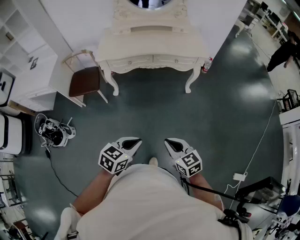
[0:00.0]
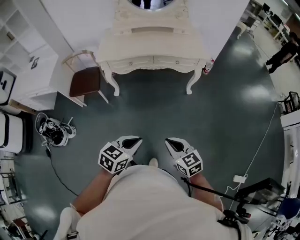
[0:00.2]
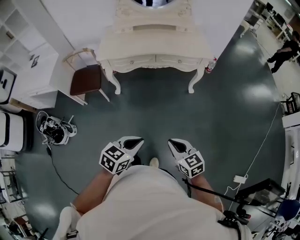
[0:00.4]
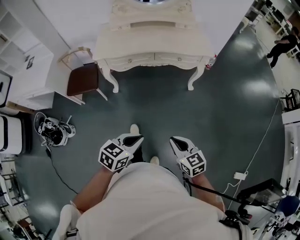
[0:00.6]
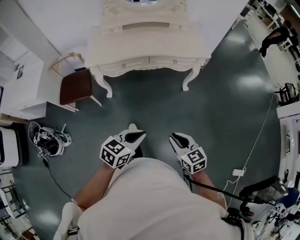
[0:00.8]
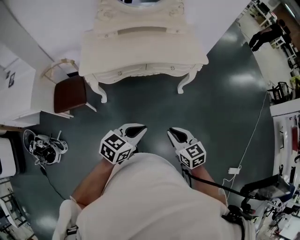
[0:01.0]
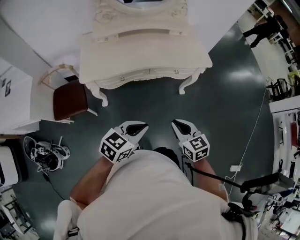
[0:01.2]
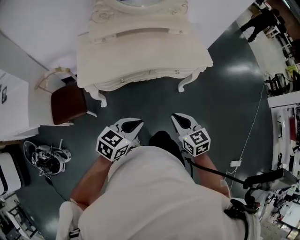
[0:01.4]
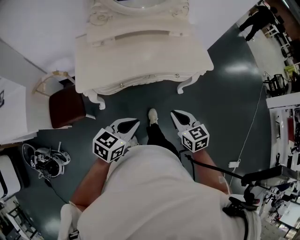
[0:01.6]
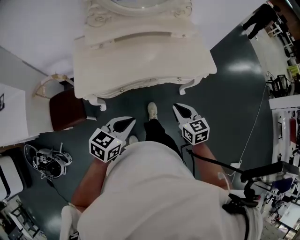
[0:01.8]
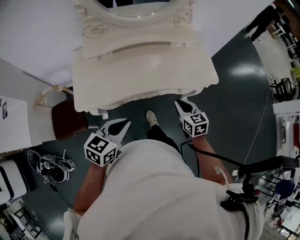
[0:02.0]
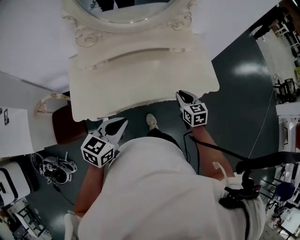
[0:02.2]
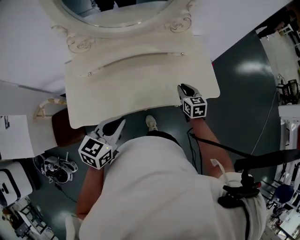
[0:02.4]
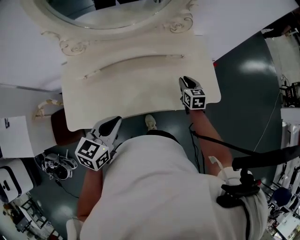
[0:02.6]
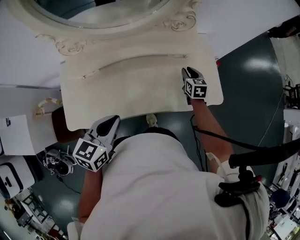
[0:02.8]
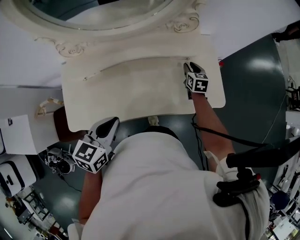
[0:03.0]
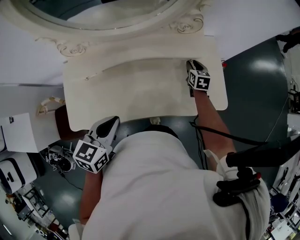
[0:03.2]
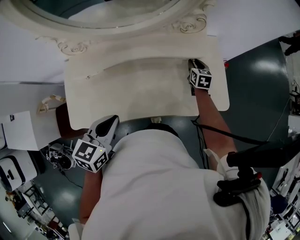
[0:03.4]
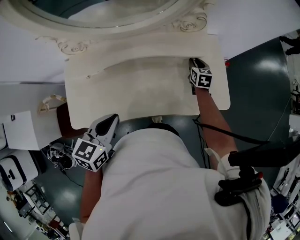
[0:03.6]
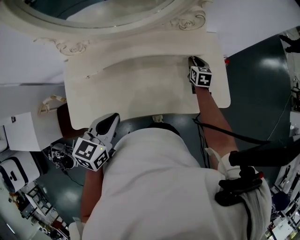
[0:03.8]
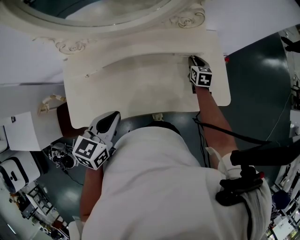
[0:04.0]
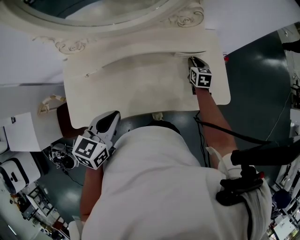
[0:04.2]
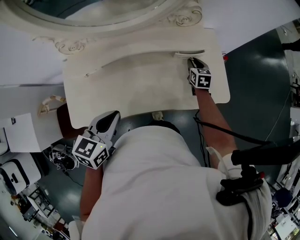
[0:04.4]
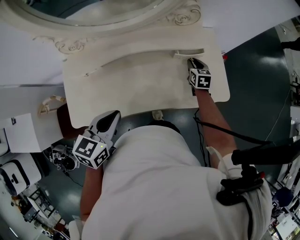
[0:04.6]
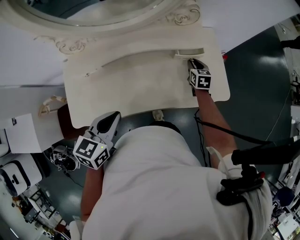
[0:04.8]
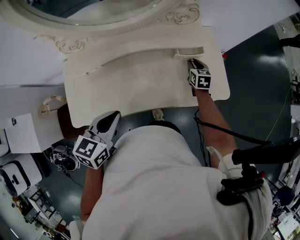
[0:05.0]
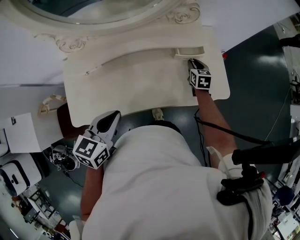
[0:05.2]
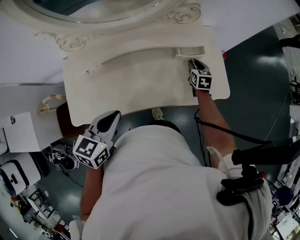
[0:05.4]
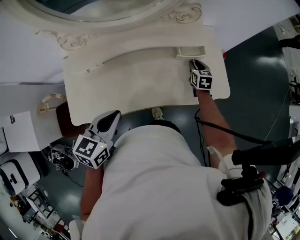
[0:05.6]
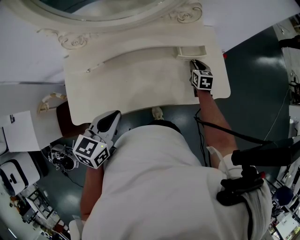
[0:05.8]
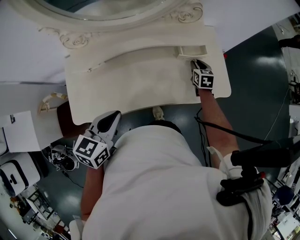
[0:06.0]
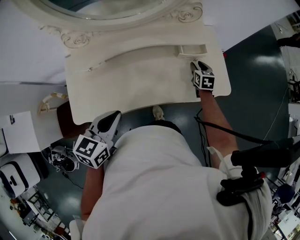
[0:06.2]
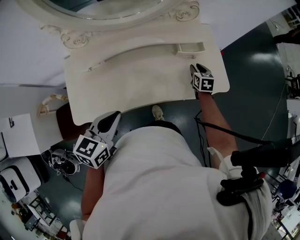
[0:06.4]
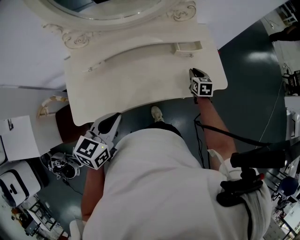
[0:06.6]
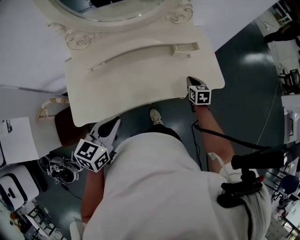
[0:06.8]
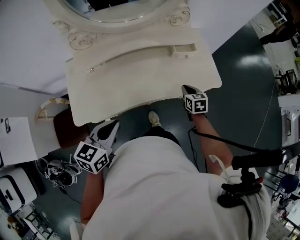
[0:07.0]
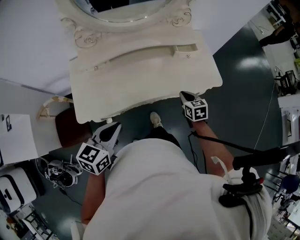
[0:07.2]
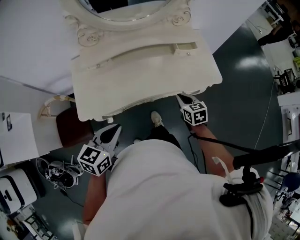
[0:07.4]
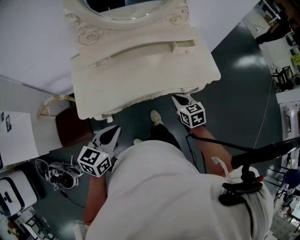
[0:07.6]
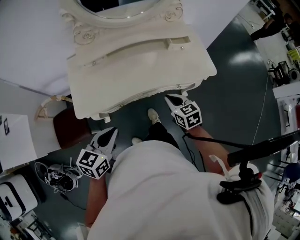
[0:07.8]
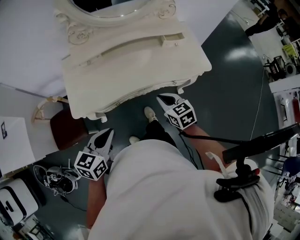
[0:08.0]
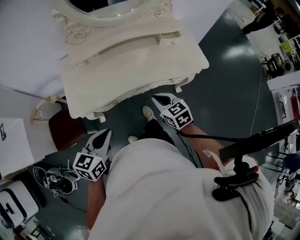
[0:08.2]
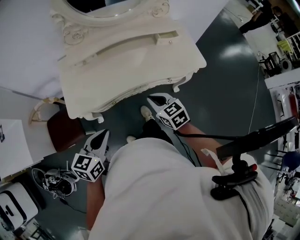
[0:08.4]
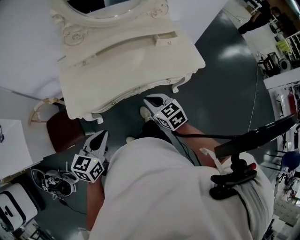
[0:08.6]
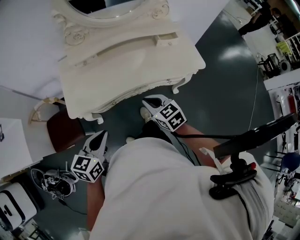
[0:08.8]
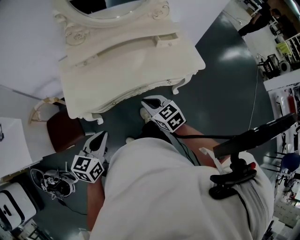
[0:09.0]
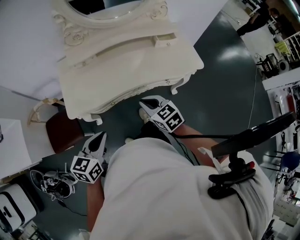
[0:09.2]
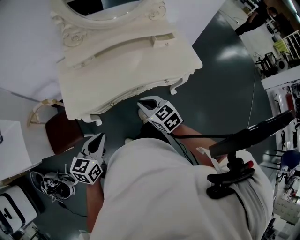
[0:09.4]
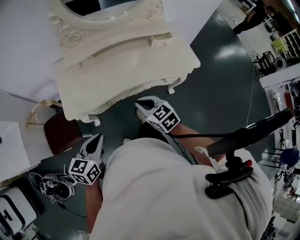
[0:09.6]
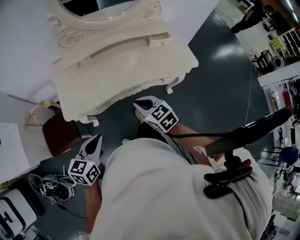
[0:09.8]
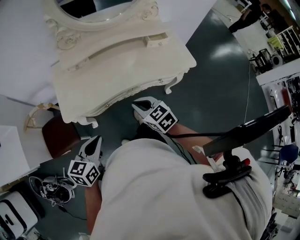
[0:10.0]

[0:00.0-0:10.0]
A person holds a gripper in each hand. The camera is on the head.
0:00.0 to 0:01.4: The left gripper shifts some 35 cm forward and to the left. Meanwhile the right gripper shifts about 35 cm forward.
0:01.4 to 0:02.8: The left gripper moves forward, roughly 40 cm, and swivels approximately 20 degrees. Meanwhile the right gripper moves forward, some 60 cm, and opens up.
0:02.8 to 0:04.2: The right gripper travels forward by about 5 cm.
0:04.2 to 0:05.8: The right gripper moves roughly 5 cm.
0:05.8 to 0:07.2: The left gripper is displaced backward by approximately 15 cm. The right gripper moves backward, some 25 cm, and closes.
0:07.2 to 0:08.6: The right gripper goes some 25 cm to the left, backward and upward, and changes its angle by approximately 20 degrees, while the left gripper heads backward, covering approximately 10 cm.
0:08.6 to 0:10.0: The grippers move only a little.

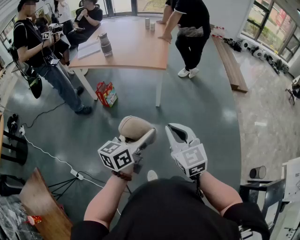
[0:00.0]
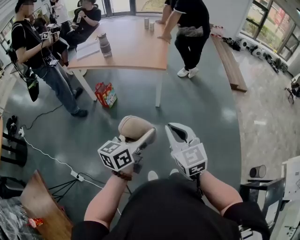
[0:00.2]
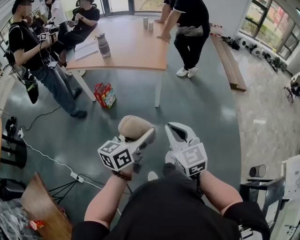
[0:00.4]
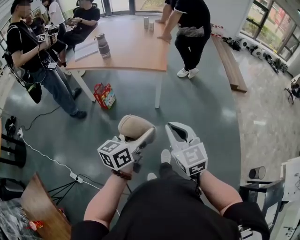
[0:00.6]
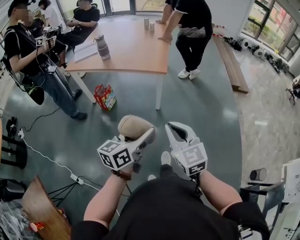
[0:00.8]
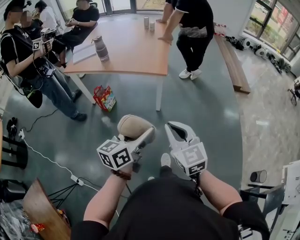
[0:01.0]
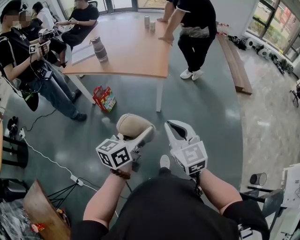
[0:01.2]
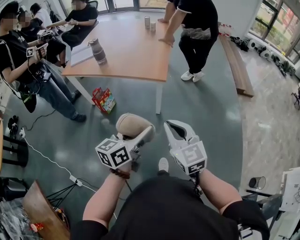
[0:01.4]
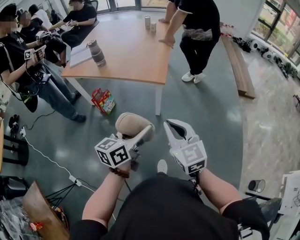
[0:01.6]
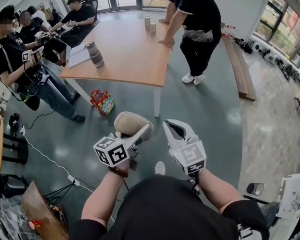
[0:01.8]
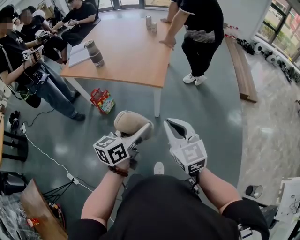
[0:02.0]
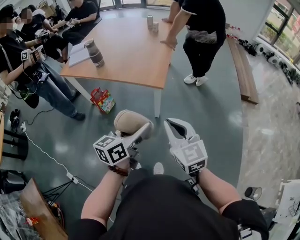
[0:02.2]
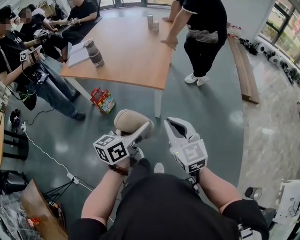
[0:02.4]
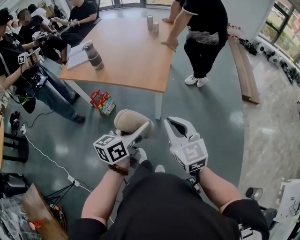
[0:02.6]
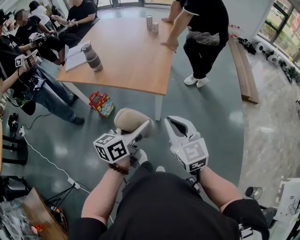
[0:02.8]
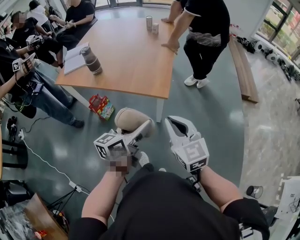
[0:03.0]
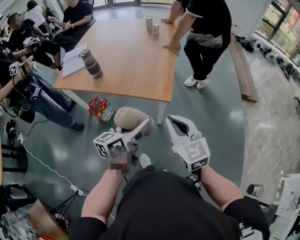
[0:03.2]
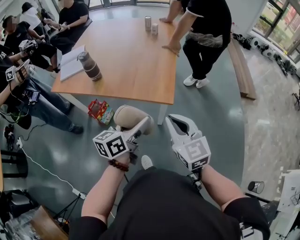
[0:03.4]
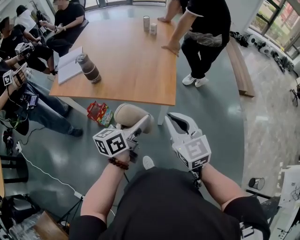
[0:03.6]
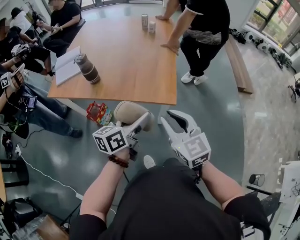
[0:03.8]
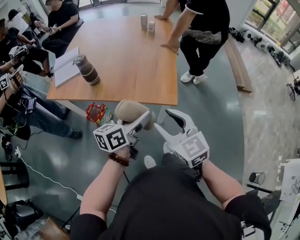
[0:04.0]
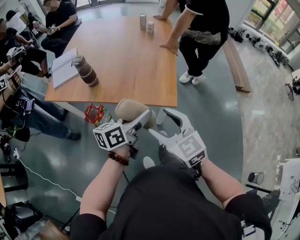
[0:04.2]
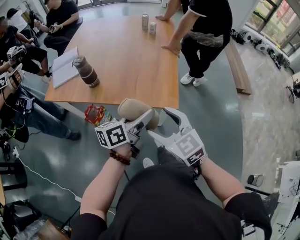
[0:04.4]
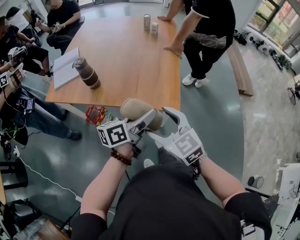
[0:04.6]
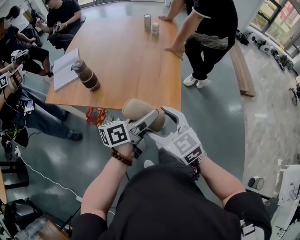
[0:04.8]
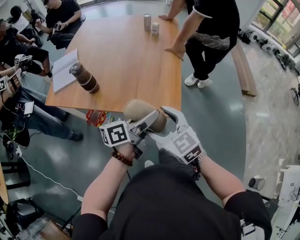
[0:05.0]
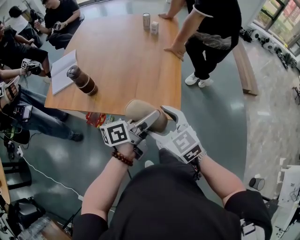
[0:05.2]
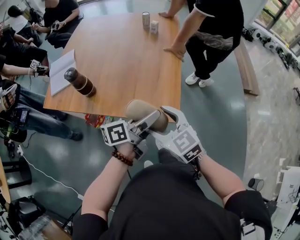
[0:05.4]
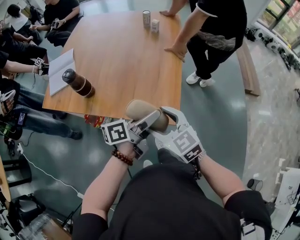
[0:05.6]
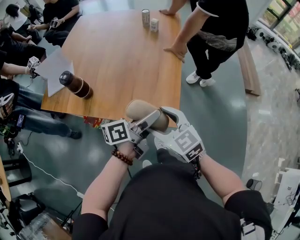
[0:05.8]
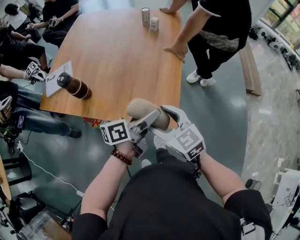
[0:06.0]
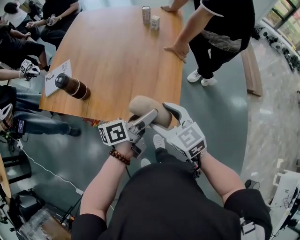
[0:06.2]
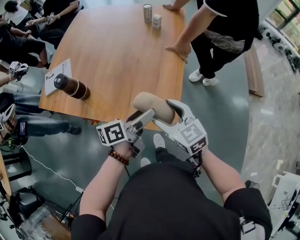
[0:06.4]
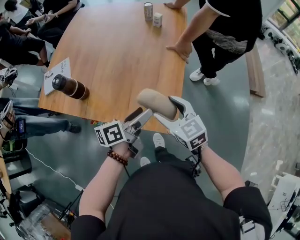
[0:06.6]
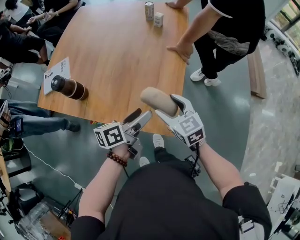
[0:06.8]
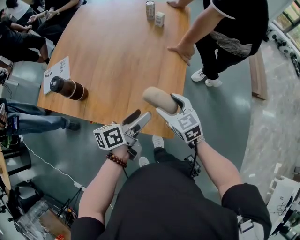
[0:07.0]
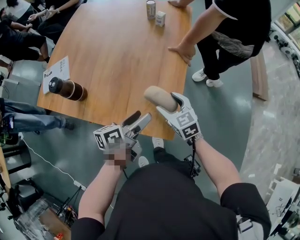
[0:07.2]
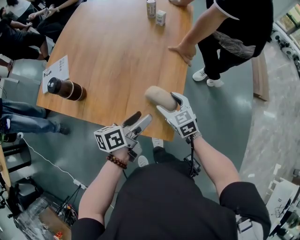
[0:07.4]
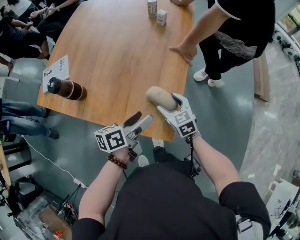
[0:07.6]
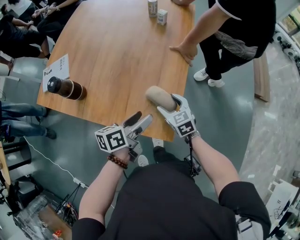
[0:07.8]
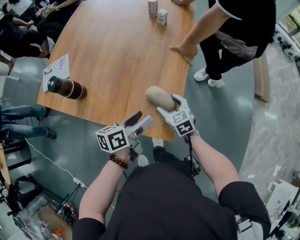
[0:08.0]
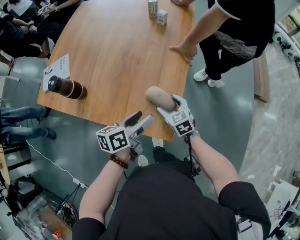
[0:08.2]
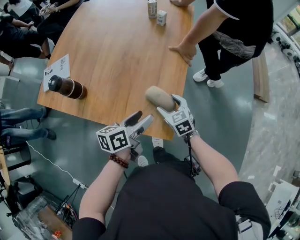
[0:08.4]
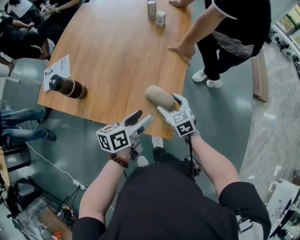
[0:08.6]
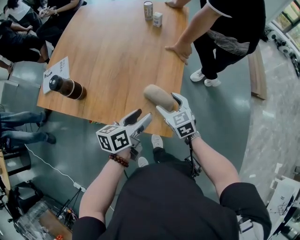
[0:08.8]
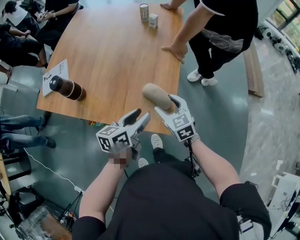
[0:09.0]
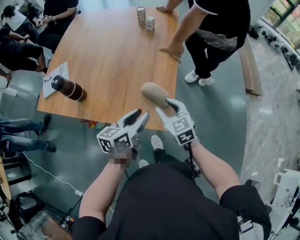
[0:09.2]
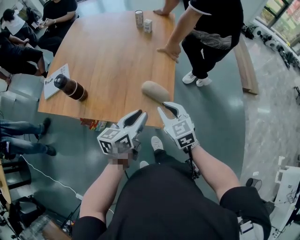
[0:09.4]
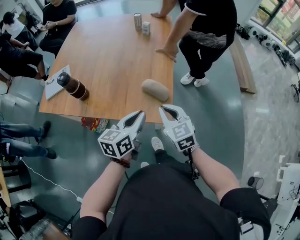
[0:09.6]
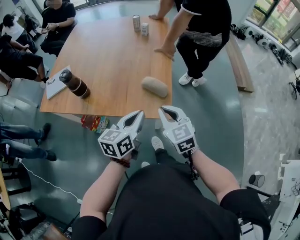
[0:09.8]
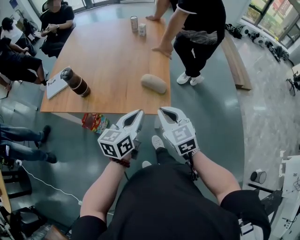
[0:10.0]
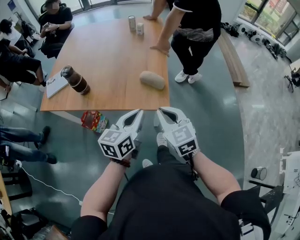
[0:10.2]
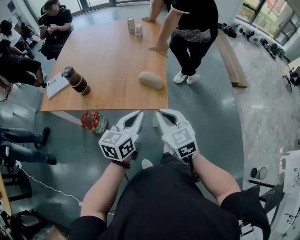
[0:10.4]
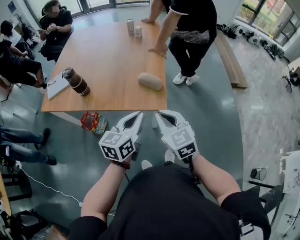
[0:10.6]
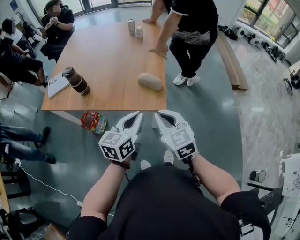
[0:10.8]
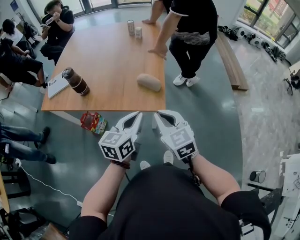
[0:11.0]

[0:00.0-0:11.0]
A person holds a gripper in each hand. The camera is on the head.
0:00.0 to 0:01.6: The grippers both shift forward by approximately 20 cm.
0:01.6 to 0:03.2: The grippers both shift forward by approximately 20 cm.
0:03.2 to 0:04.8: The left gripper goes approximately 15 cm forward, and turns by approximately 20 degrees; the right gripper heads to the left and forward, covering roughly 15 cm, and opens its fingers.
0:04.8 to 0:06.2: The left gripper is displaced forward by approximately 10 cm; the right gripper moves forward and to the right, some 15 cm.
0:06.2 to 0:07.8: The left gripper goes some 5 cm downward; the right gripper travels downward and forward by roughly 20 cm.
0:07.8 to 0:09.4: The left gripper is displaced backward by about 5 cm, swivels about 20 degrees, and closes its fingers. Meanwhile the right gripper goes some 15 cm upward and backward, and closes up.
0:09.4 to 0:11.0: The grippers both shift backward and upward by about 15 cm.

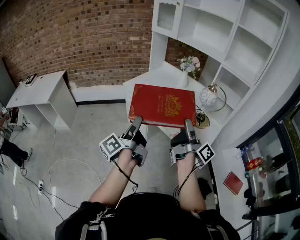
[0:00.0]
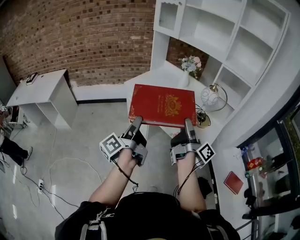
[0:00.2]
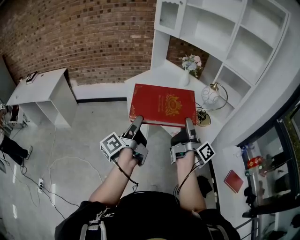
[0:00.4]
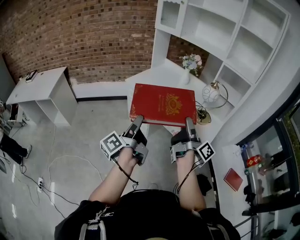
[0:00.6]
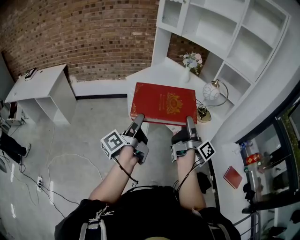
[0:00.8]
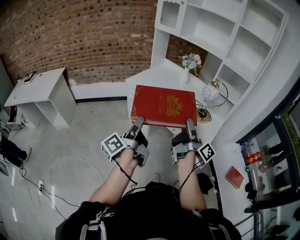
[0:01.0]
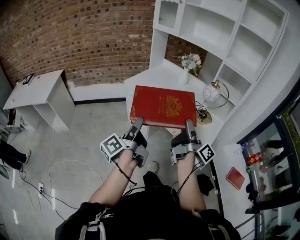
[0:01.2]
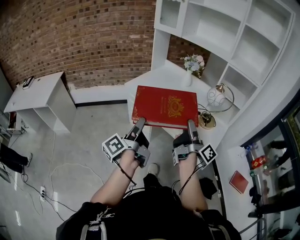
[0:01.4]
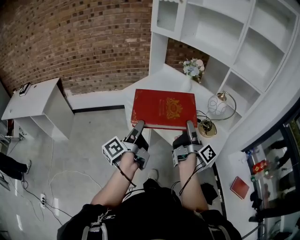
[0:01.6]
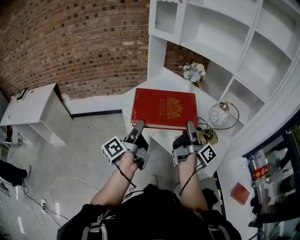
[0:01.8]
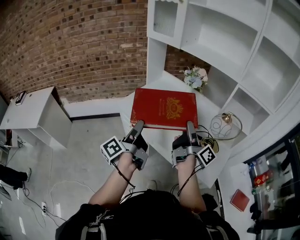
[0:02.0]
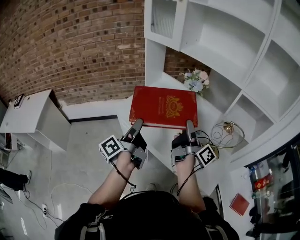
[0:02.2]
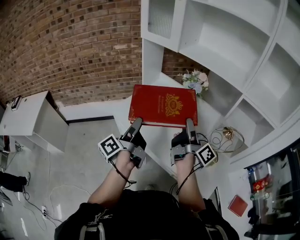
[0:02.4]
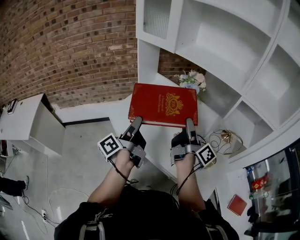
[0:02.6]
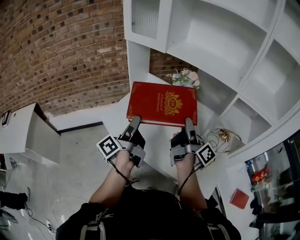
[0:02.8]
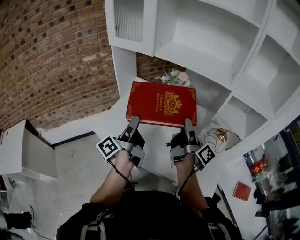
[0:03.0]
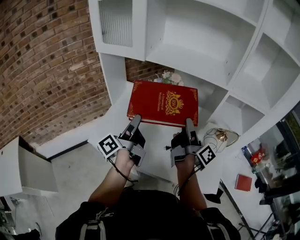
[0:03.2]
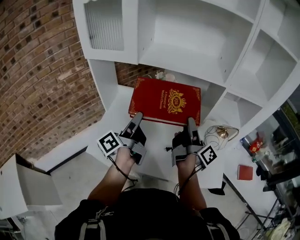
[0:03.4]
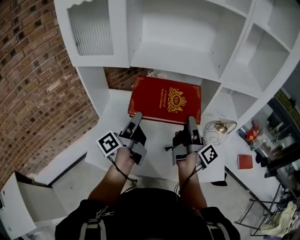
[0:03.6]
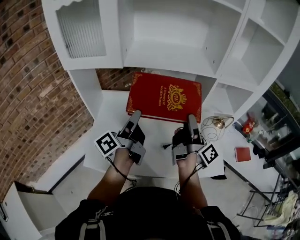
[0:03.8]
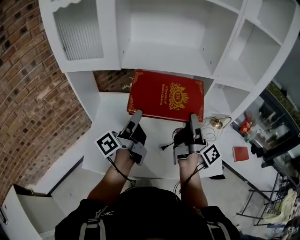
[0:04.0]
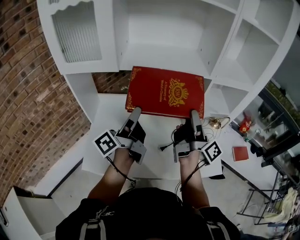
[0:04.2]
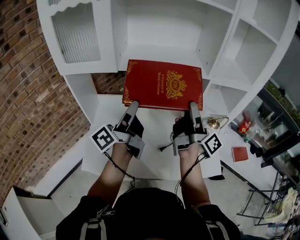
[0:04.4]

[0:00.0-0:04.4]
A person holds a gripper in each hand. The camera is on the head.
0:00.0 to 0:01.4: The right gripper changes place by roughly 5 cm, while the left gripper moves some 5 cm.
0:01.4 to 0:03.0: The two grippers travel together, forward, some 50 cm.
0:03.0 to 0:04.4: The right gripper shifts some 10 cm upward, and changes its angle by some 30 degrees. Meanwhile the left gripper moves some 15 cm, and changes its angle by roughly 30 degrees.
